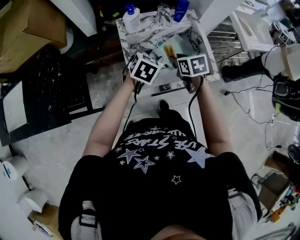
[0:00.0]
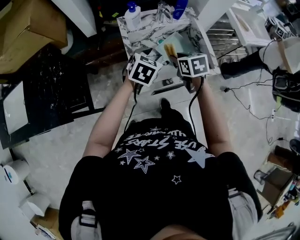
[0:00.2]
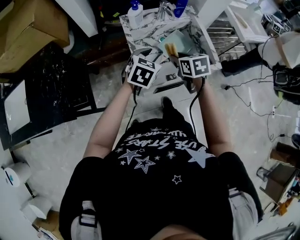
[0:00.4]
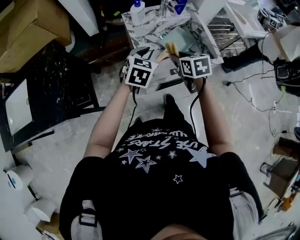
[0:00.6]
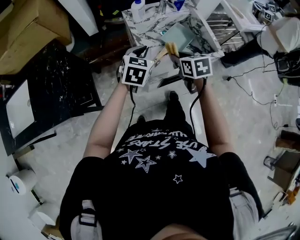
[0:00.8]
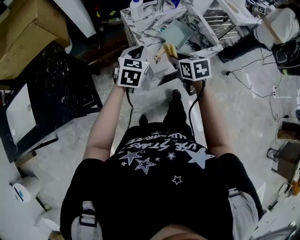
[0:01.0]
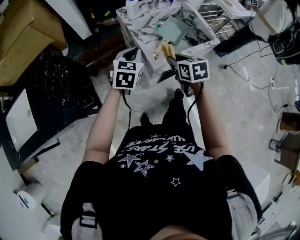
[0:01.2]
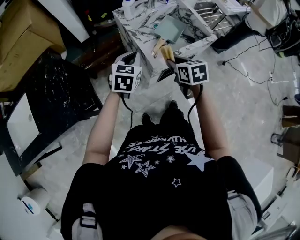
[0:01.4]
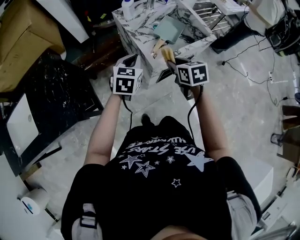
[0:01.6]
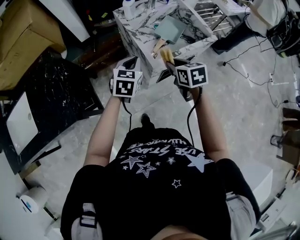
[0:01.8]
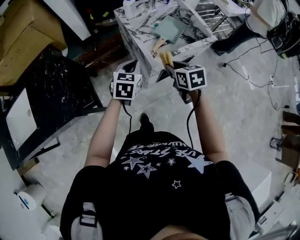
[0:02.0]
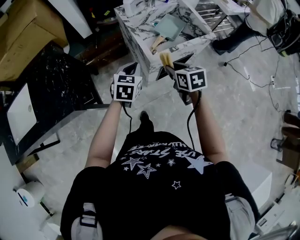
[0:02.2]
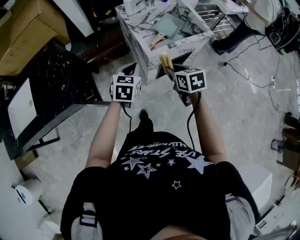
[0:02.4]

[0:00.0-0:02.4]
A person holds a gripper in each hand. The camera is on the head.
0:00.0 to 0:01.2: The left gripper moves to the left and backward, approximately 20 cm, and closes. The right gripper moves backward and to the left, some 20 cm.
0:01.2 to 0:02.4: Both grippers move backward, roughly 10 cm.

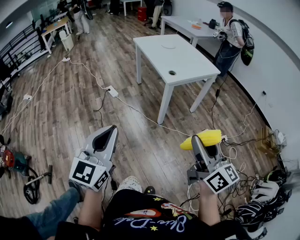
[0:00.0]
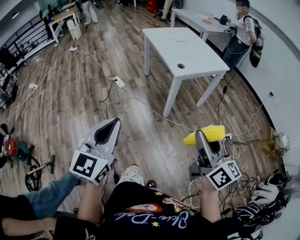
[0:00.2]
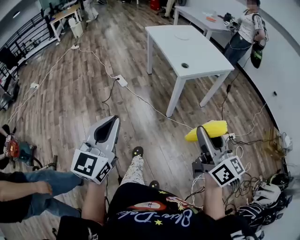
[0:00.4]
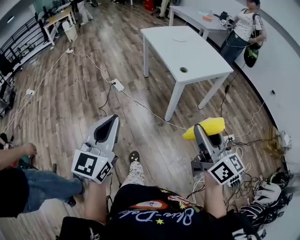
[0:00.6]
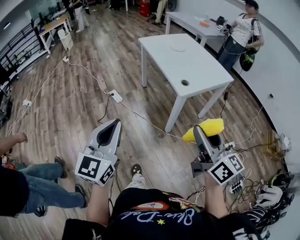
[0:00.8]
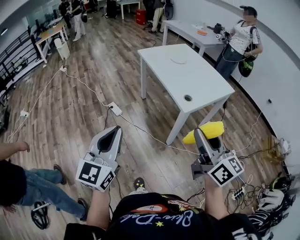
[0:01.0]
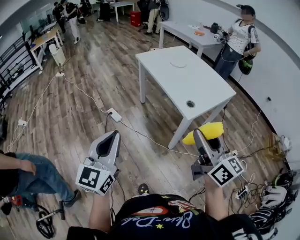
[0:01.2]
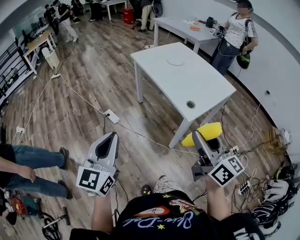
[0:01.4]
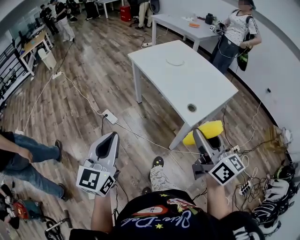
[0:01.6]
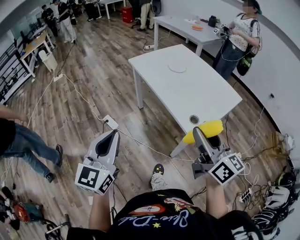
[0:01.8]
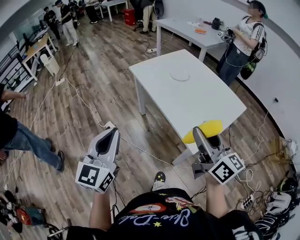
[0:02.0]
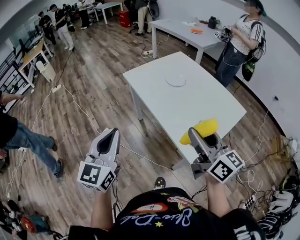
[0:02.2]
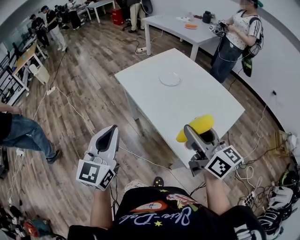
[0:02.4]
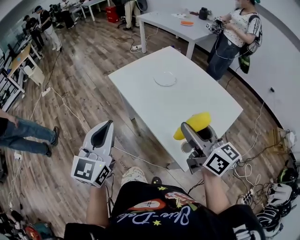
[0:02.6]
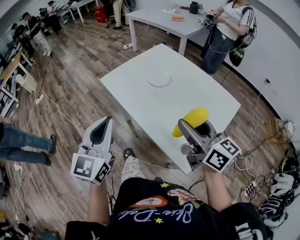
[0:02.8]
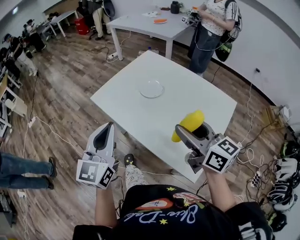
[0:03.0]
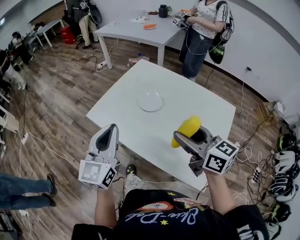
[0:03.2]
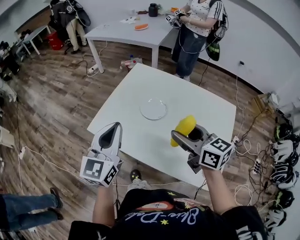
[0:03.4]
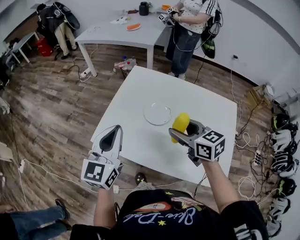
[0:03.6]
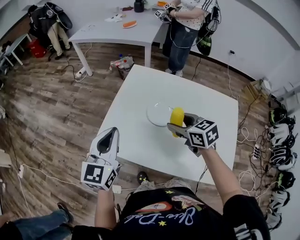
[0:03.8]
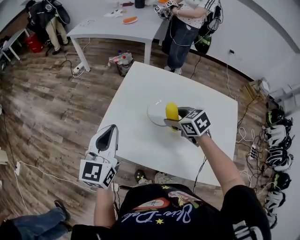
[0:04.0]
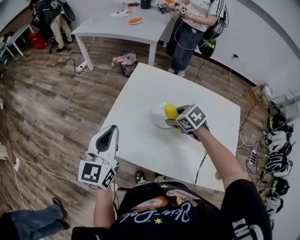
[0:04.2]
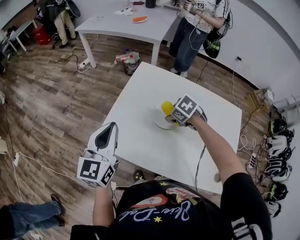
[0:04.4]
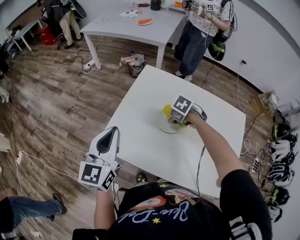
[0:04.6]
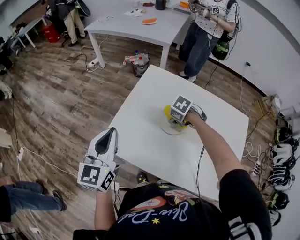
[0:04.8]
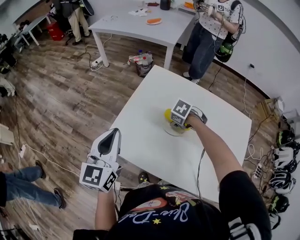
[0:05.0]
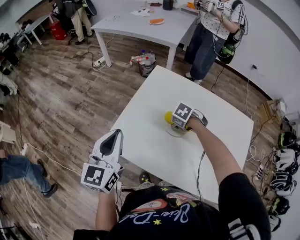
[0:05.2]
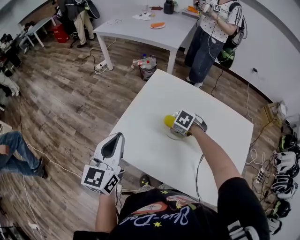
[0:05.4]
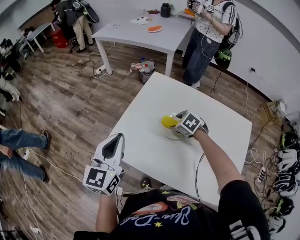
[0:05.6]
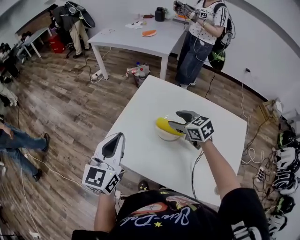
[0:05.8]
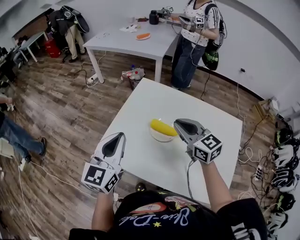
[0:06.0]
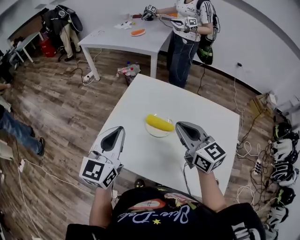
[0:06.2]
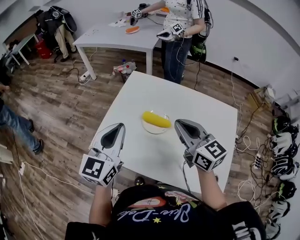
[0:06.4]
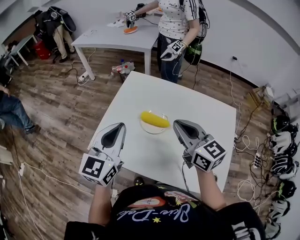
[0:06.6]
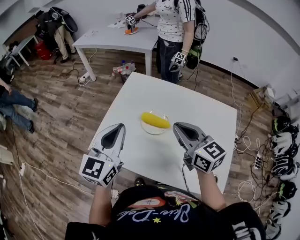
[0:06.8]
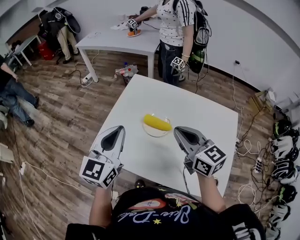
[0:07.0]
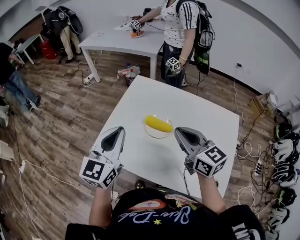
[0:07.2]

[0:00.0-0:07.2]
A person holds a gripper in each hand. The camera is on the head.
0:00.0 to 0:01.4: The grippers both shift forward by some 35 cm.
0:01.4 to 0:02.8: Both grippers travel together forward, about 40 cm.
0:02.8 to 0:04.4: Both grippers are carried forward, some 40 cm. The right gripper moves downward, some 20 cm, and angles its fingers downward, by approximately 70 degrees. Meanwhile the left gripper rotates some 20 degrees.
0:04.4 to 0:05.8: The right gripper travels upward by roughly 5 cm, and tips its fingers upward by approximately 40 degrees.
0:05.8 to 0:07.2: The left gripper is displaced to the right by some 5 cm, while the right gripper goes about 15 cm upward and backward, changes its angle by some 30 degrees, and closes its fingers.

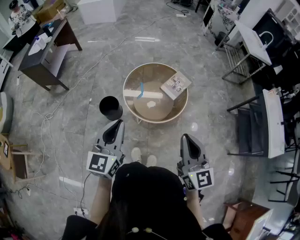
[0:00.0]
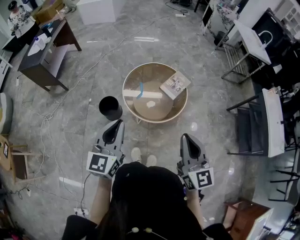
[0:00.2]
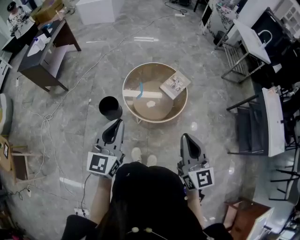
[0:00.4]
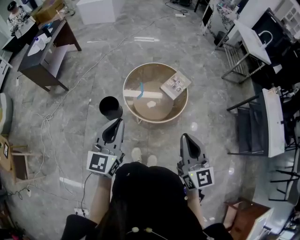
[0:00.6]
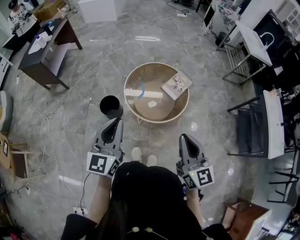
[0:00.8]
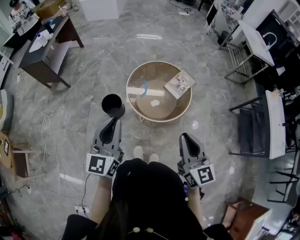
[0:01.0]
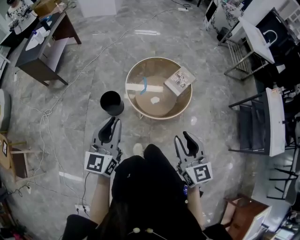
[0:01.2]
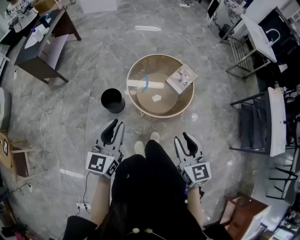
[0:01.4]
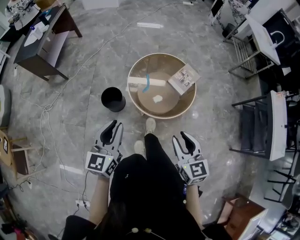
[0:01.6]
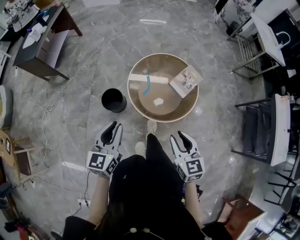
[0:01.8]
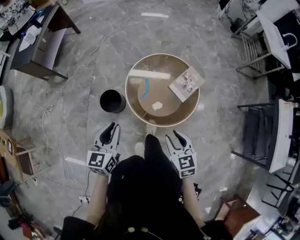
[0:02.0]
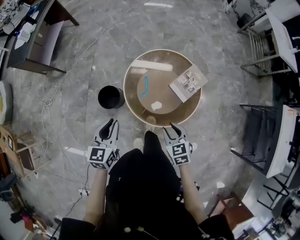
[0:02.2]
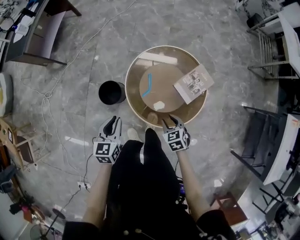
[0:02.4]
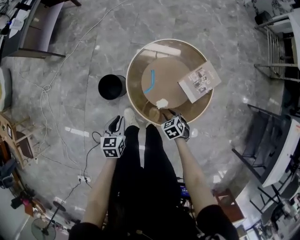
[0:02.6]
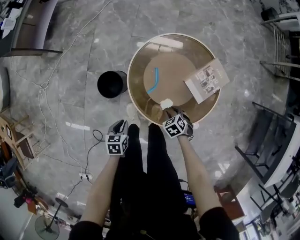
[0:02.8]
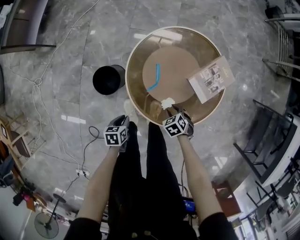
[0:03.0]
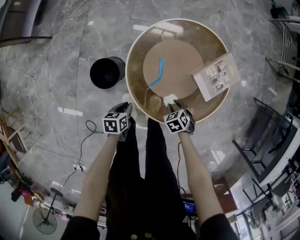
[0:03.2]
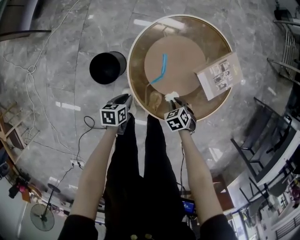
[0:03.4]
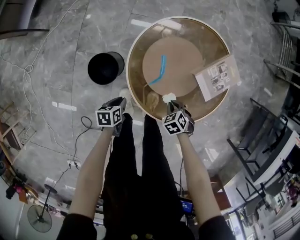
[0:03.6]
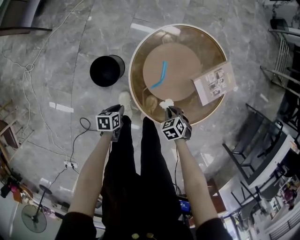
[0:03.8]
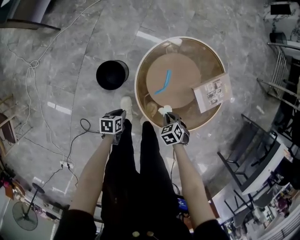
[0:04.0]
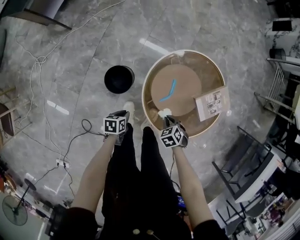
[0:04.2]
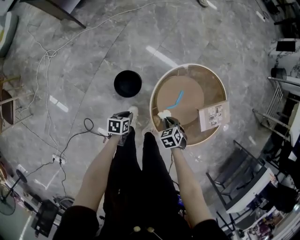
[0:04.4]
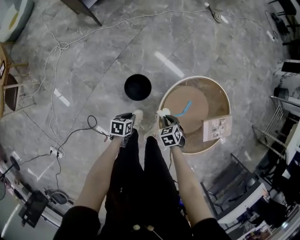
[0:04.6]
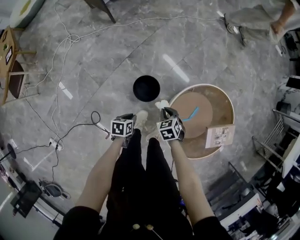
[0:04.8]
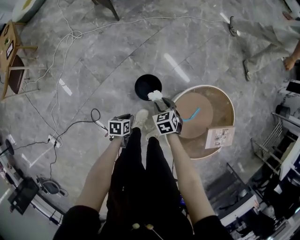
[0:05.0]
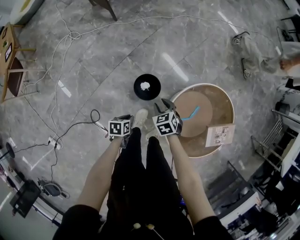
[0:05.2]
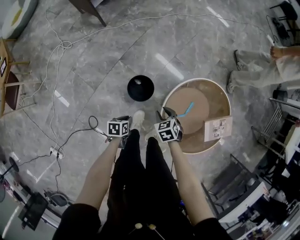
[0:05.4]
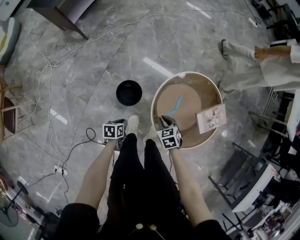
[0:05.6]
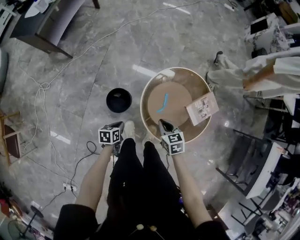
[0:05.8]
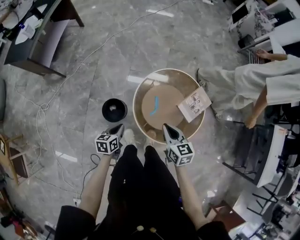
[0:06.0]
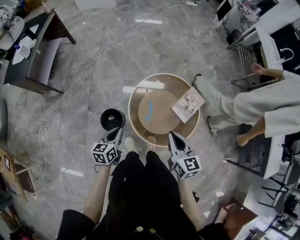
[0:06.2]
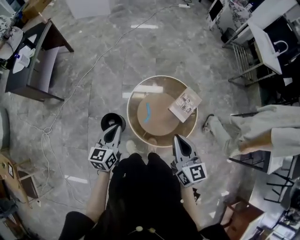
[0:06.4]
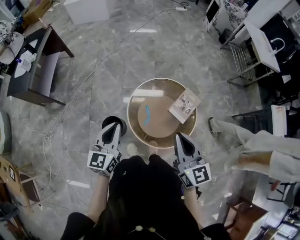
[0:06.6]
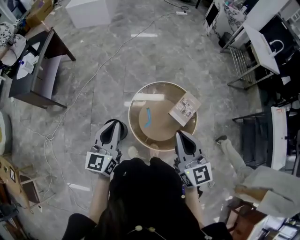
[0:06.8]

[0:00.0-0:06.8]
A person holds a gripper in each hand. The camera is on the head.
0:00.0 to 0:01.4: The right gripper goes approximately 10 cm downward, and opens; the left gripper goes some 5 cm to the left and downward.
0:01.4 to 0:02.8: The left gripper is displaced downward by some 40 cm, and tilts its fingers roughly 50 degrees downward. Meanwhile the right gripper travels downward and forward by approximately 50 cm, and angles its fingers downward, by roughly 50 degrees.
0:02.8 to 0:04.0: The right gripper closes. Meanwhile the left gripper shifts roughly 10 cm downward, and changes its angle by roughly 20 degrees.
0:04.0 to 0:05.4: The right gripper shifts by about 25 cm, and opens. The left gripper ends up about 15 cm from where it was.
0:05.4 to 0:06.8: The right gripper is displaced upward and to the right by about 50 cm, angles its fingers upward, by approximately 60 degrees, and closes up, while the left gripper heads upward, covering approximately 40 cm, and angles its fingers upward, by approximately 50 degrees.

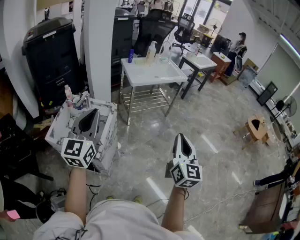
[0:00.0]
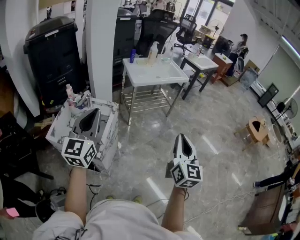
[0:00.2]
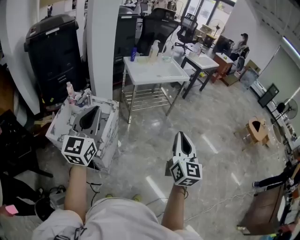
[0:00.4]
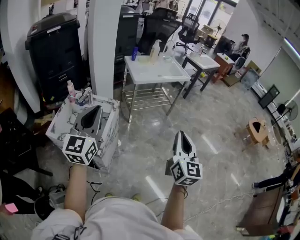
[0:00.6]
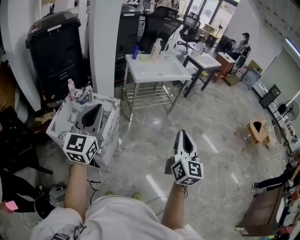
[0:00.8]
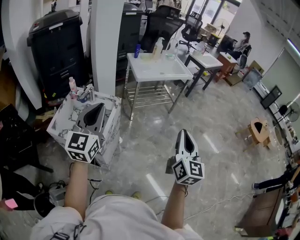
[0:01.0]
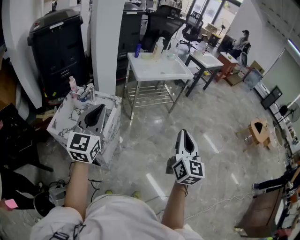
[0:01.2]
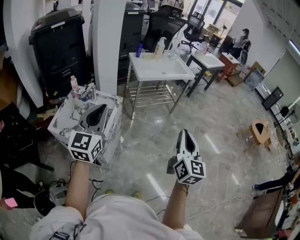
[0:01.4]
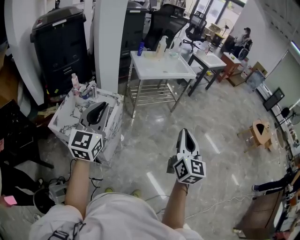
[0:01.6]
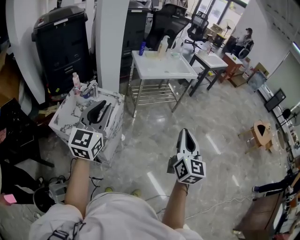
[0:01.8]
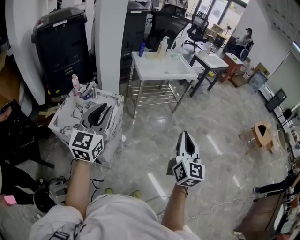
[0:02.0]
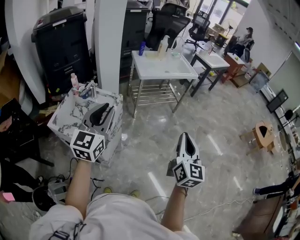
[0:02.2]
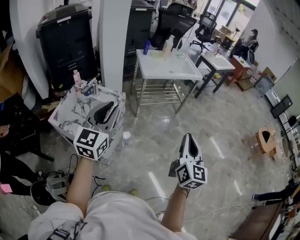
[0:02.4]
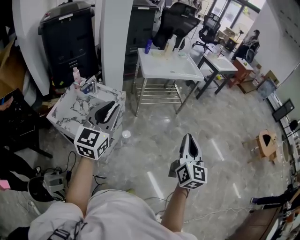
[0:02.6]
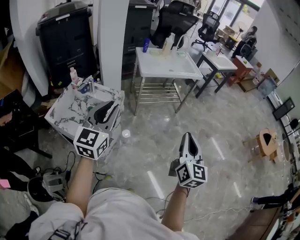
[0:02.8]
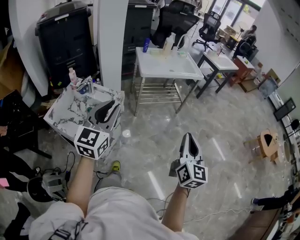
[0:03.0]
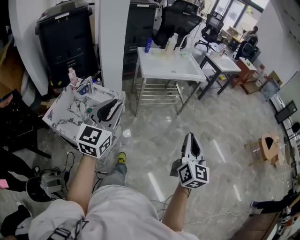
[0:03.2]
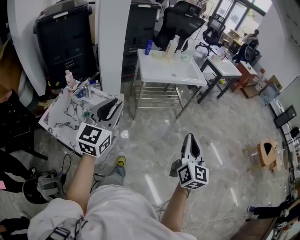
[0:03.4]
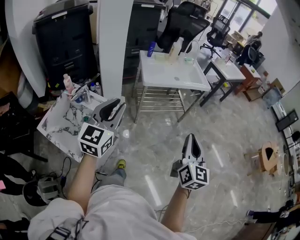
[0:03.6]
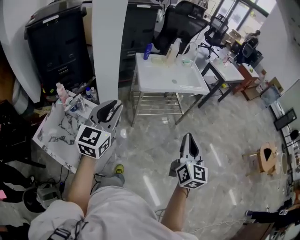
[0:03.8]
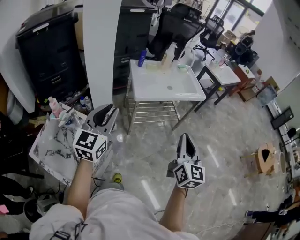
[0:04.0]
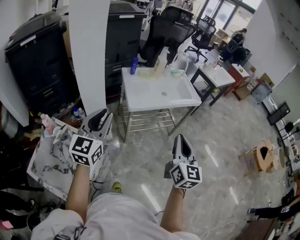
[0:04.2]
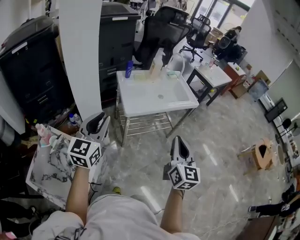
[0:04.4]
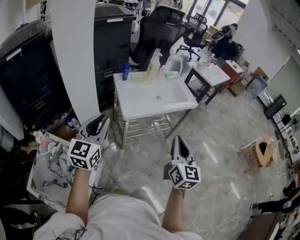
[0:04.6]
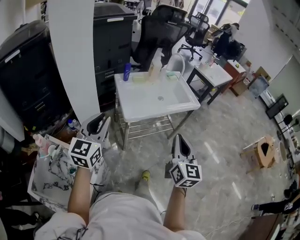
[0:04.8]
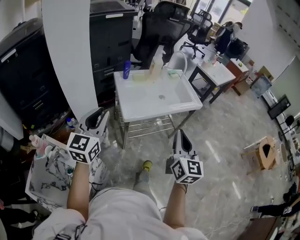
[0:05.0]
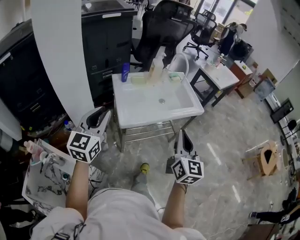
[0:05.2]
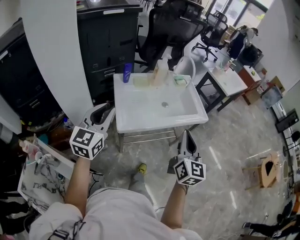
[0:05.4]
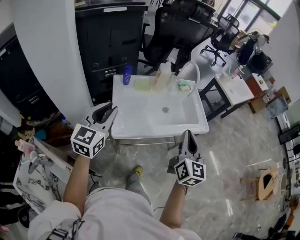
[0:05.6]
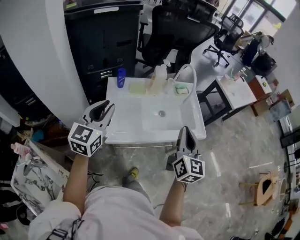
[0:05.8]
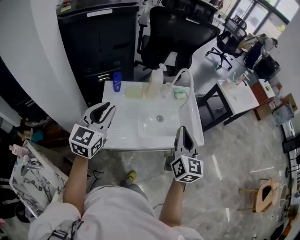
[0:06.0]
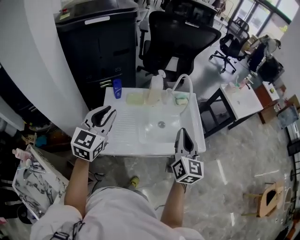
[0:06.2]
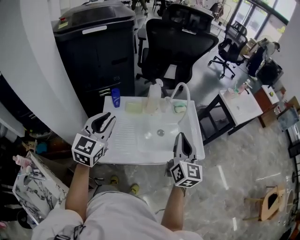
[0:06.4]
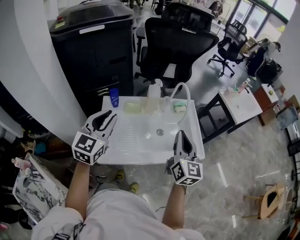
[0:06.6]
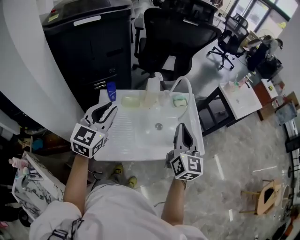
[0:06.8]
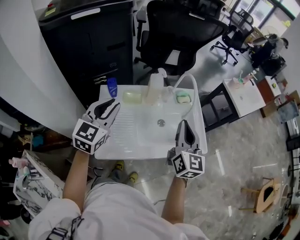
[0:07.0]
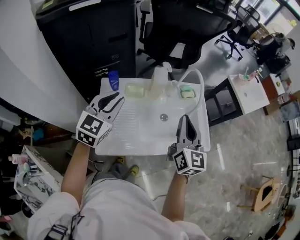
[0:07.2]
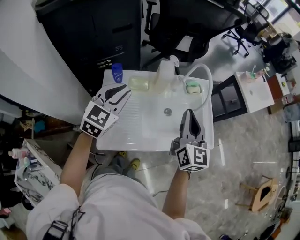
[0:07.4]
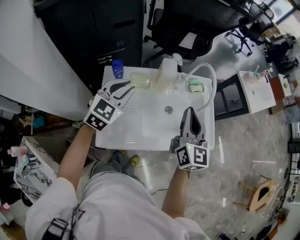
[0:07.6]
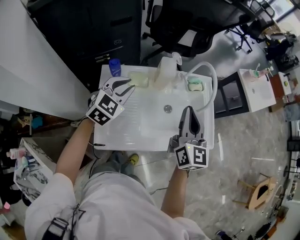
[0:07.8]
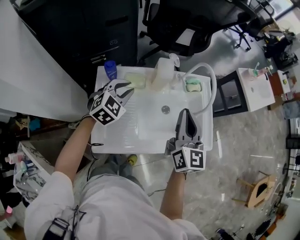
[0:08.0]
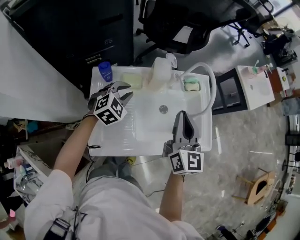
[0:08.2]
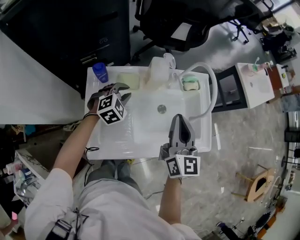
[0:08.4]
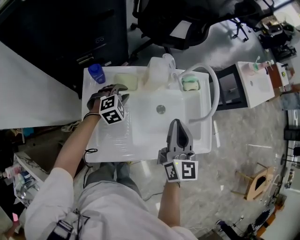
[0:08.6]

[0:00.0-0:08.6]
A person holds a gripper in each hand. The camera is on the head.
0:00.0 to 0:01.4: The grippers stay close to where they were, moving slightly.
0:01.4 to 0:02.8: Both grippers move to the right, approximately 10 cm.
0:02.8 to 0:04.4: Both grippers are carried forward, about 40 cm.
0:04.4 to 0:05.8: Both grippers move forward, some 40 cm.
0:05.8 to 0:07.2: The grippers both shift forward by some 20 cm.
0:07.2 to 0:08.6: The left gripper travels downward and forward by some 30 cm, and angles its fingers downward, by approximately 40 degrees. Meanwhile the right gripper shifts some 10 cm downward and forward.
